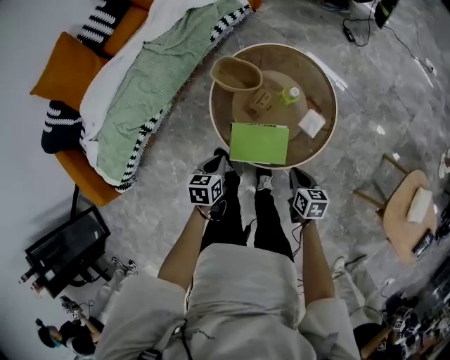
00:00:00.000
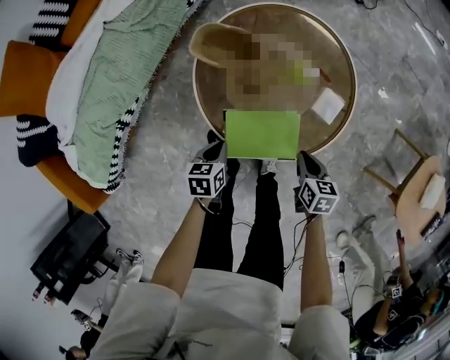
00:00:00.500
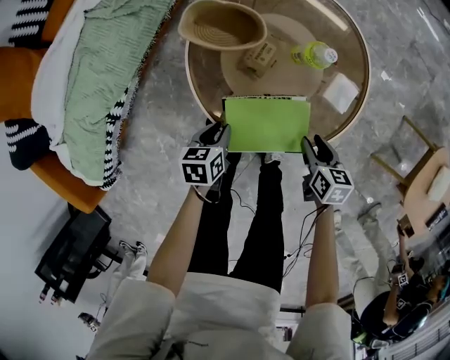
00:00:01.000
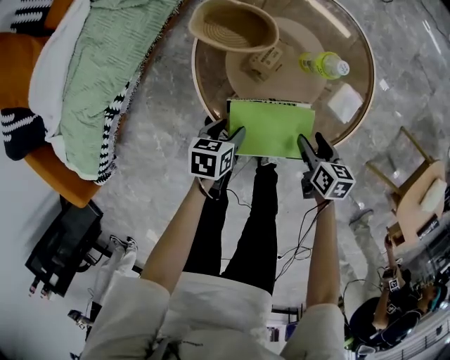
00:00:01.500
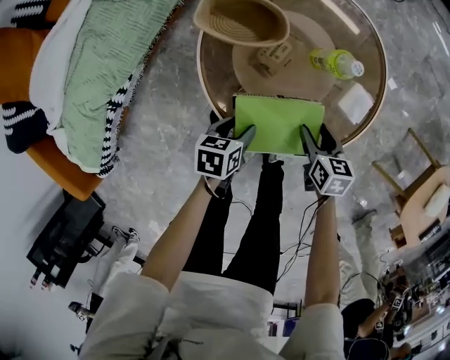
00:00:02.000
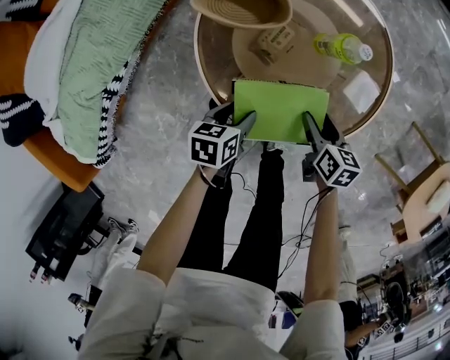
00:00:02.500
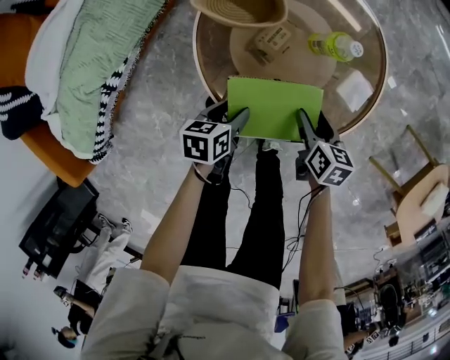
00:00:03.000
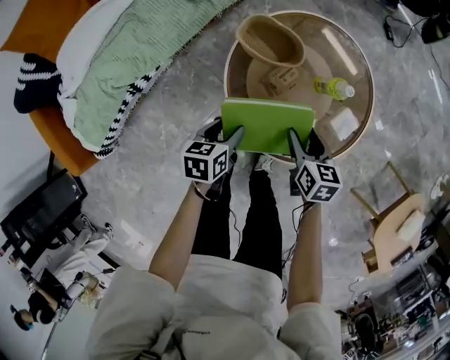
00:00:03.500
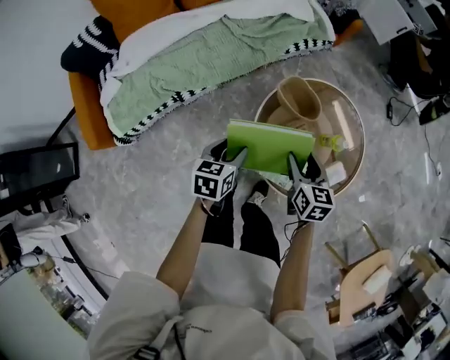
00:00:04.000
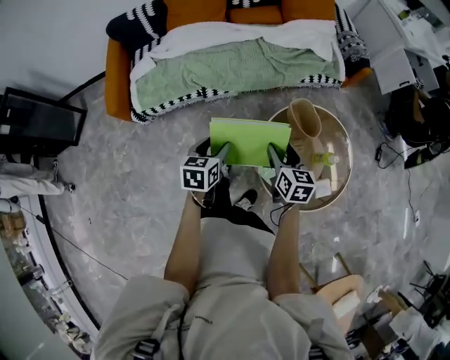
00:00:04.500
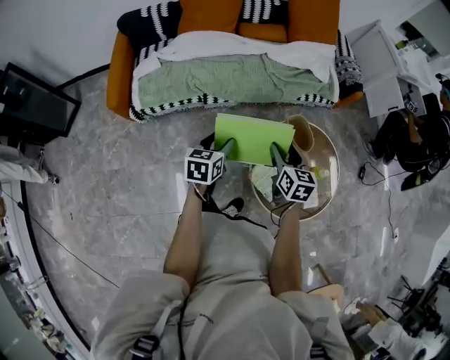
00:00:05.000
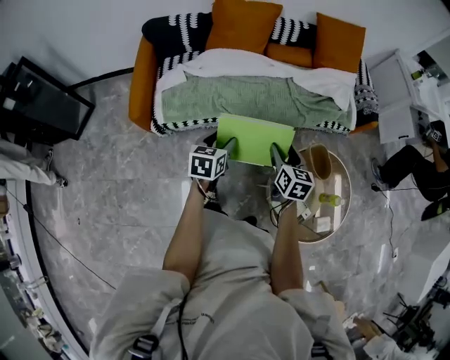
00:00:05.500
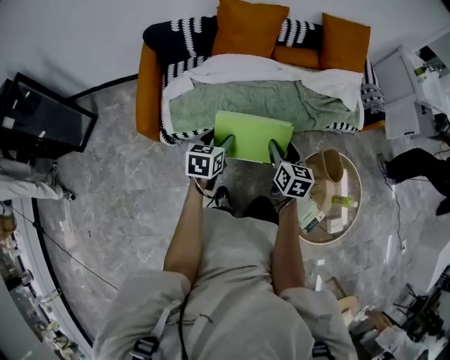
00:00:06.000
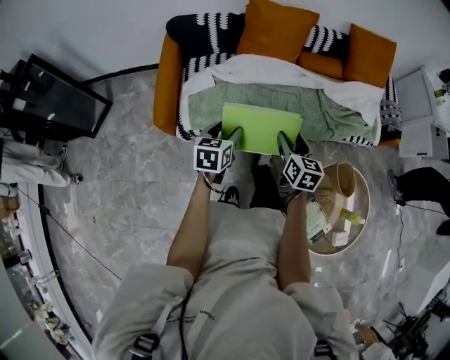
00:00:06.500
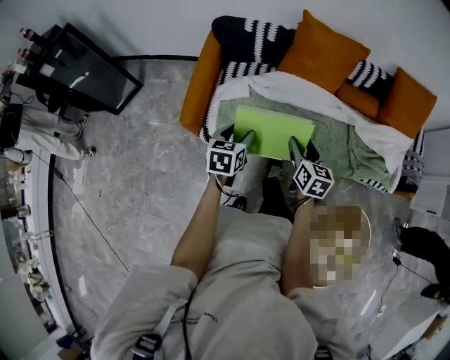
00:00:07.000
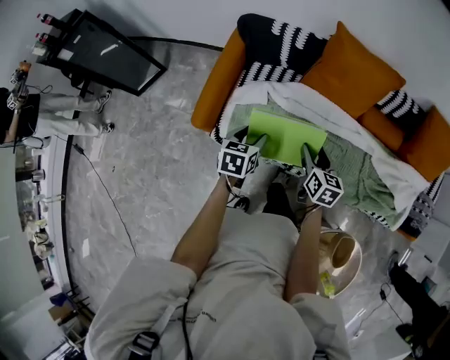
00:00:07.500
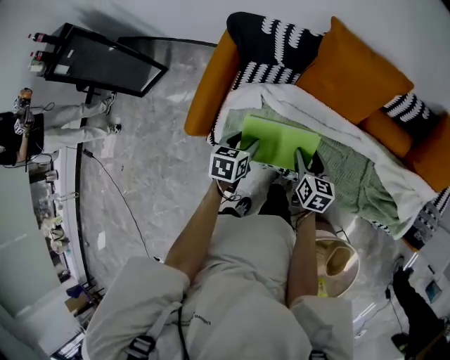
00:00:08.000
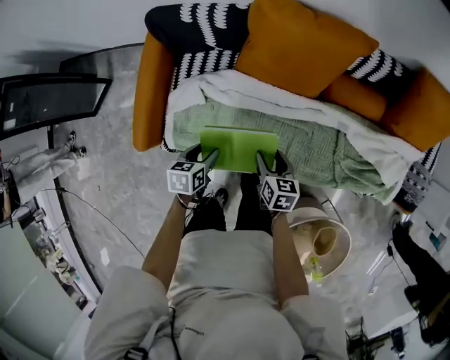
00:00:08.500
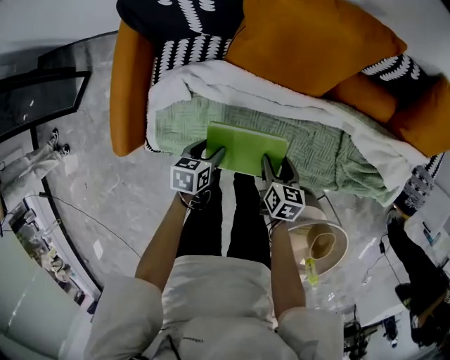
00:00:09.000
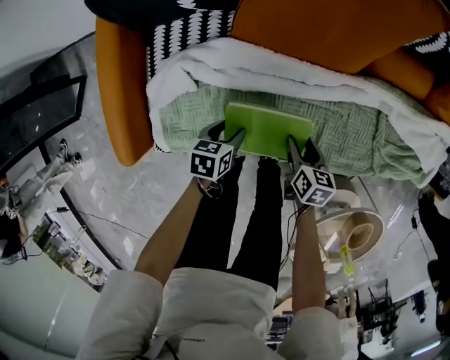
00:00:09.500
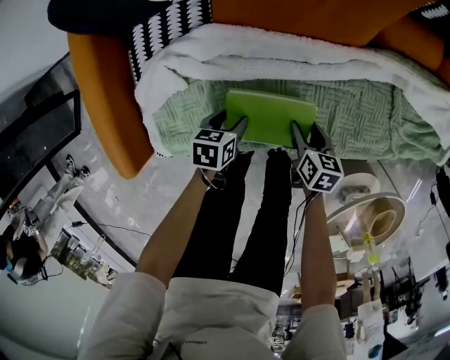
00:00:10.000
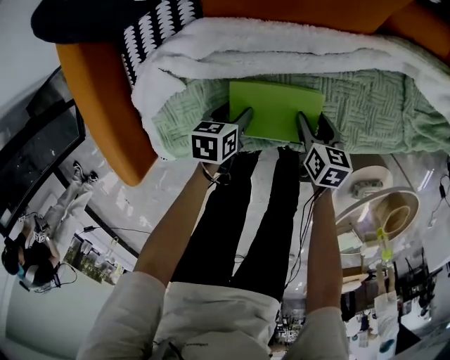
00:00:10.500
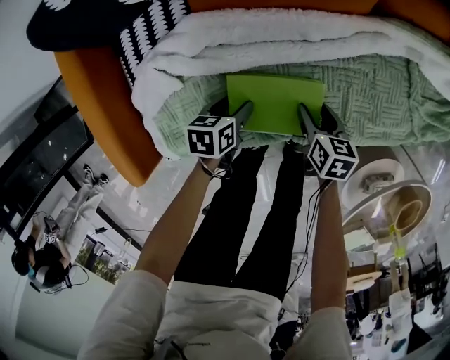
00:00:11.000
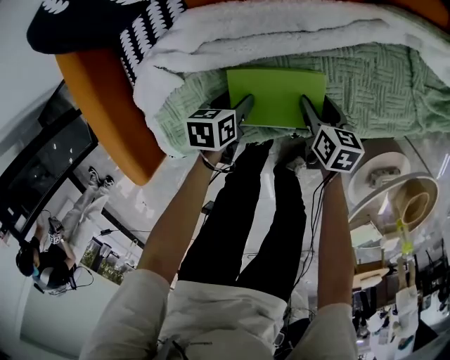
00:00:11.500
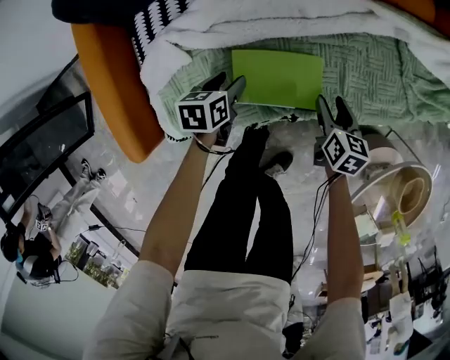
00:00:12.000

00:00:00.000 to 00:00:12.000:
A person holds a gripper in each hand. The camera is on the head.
00:00:00.000 to 00:00:02.000: The right gripper is displaced downward and forward by some 20 cm, and opens its fingers, while the left gripper heads downward, covering about 20 cm, changes its angle by about 20 degrees, and opens.
00:00:02.000 to 00:00:04.000: Both grippers travel together upward, approximately 25 cm. The right gripper swivels some 30 degrees. The left gripper changes its angle by some 30 degrees.
00:00:04.000 to 00:00:06.000: Both grippers move to the left, about 40 cm. The left gripper rotates about 30 degrees. The right gripper swivels roughly 20 degrees.
00:00:06.000 to 00:00:08.000: The left gripper changes place by approximately 30 cm, and swivels about 30 degrees. The right gripper changes place by roughly 40 cm, and changes its angle by approximately 30 degrees.
00:00:08.000 to 00:00:10.000: Both grippers travel together downward, roughly 35 cm. The right gripper rotates about 30 degrees; the left gripper changes its angle by approximately 30 degrees.
00:00:10.000 to 00:00:12.000: The right gripper shifts approximately 5 cm to the right.

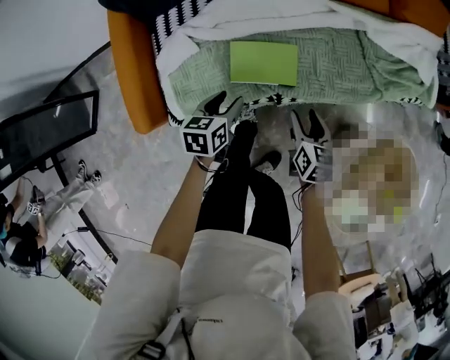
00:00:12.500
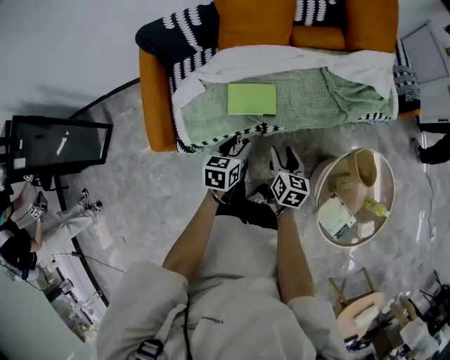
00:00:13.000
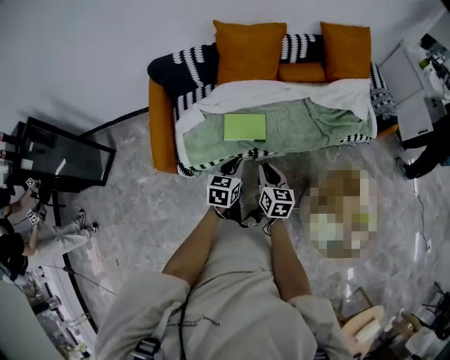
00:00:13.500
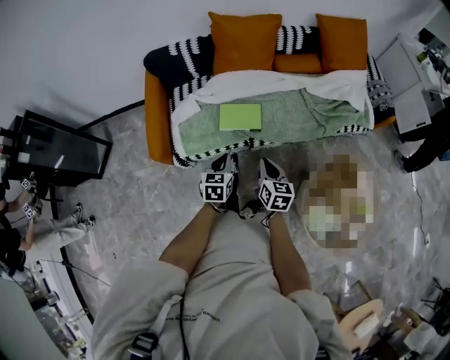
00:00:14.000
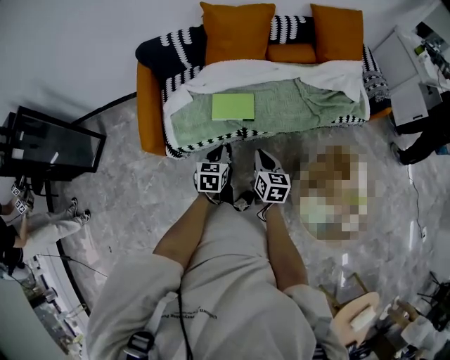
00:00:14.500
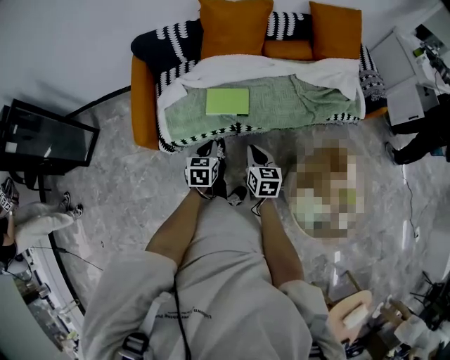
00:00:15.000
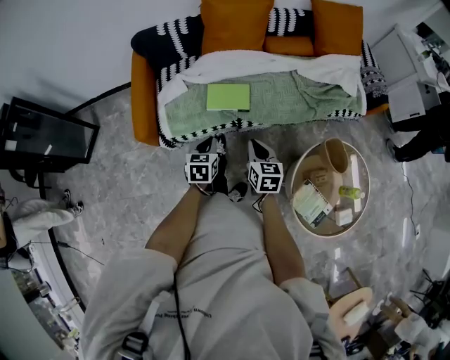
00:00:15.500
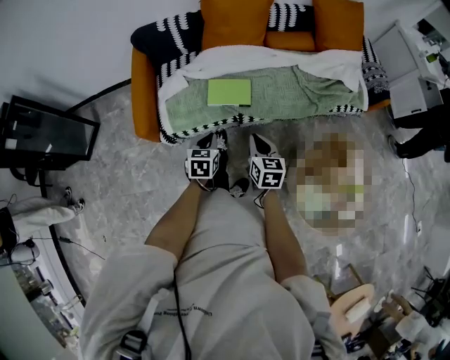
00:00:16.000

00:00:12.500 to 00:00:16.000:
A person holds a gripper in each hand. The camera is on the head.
00:00:12.500 to 00:00:14.500: The left gripper travels backward, upward and to the right by roughly 25 cm, and closes its fingers. Meanwhile the right gripper shifts approximately 25 cm upward and backward, and closes its fingers.
00:00:14.500 to 00:00:16.000: The grippers move only a little.

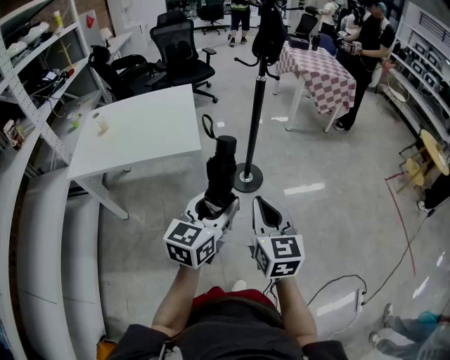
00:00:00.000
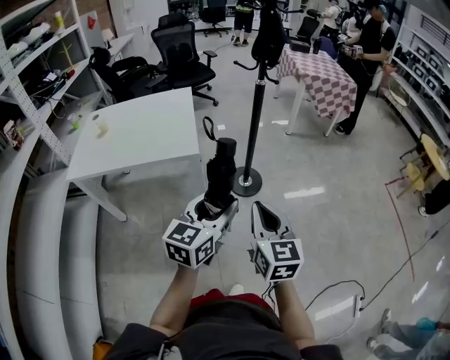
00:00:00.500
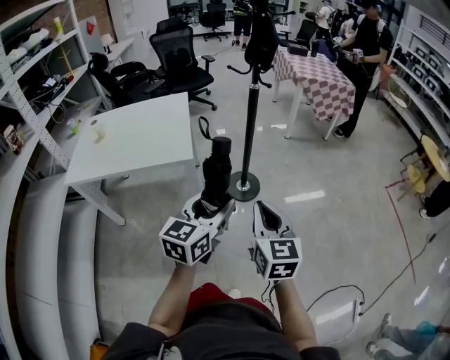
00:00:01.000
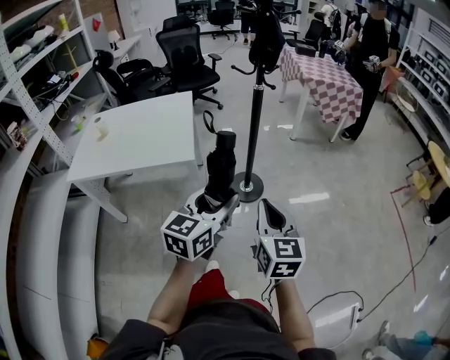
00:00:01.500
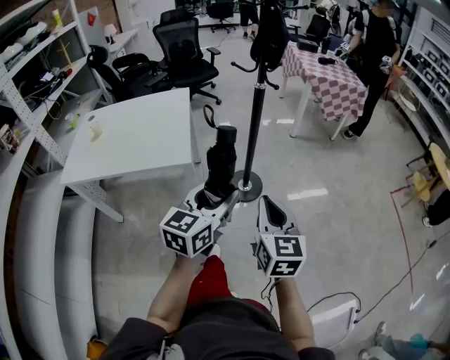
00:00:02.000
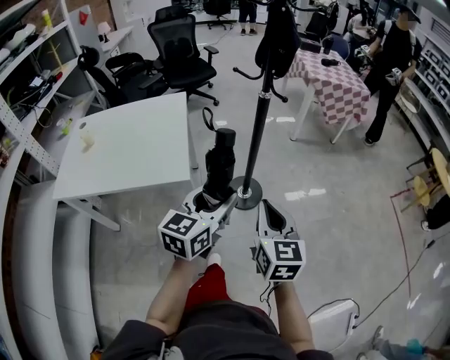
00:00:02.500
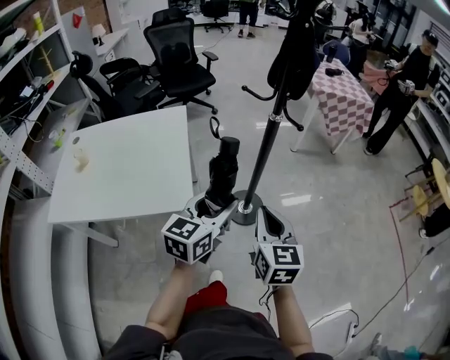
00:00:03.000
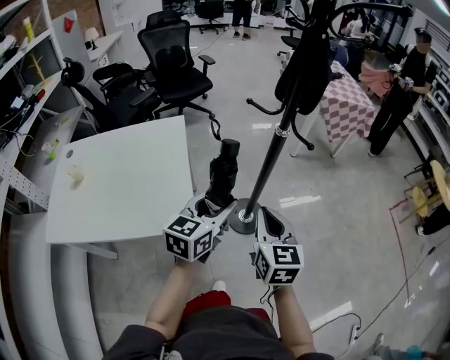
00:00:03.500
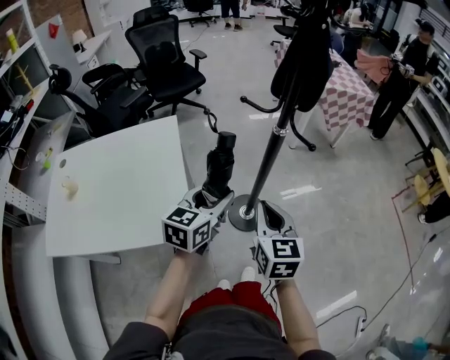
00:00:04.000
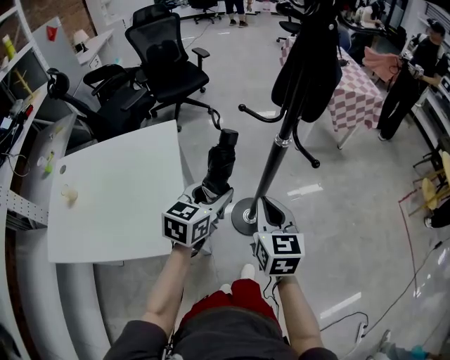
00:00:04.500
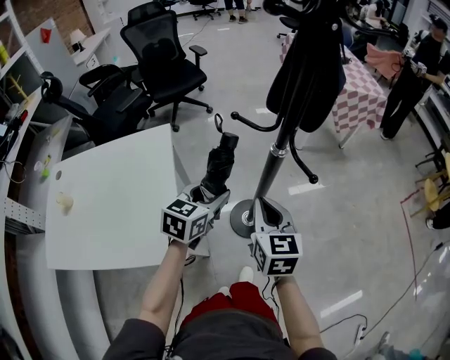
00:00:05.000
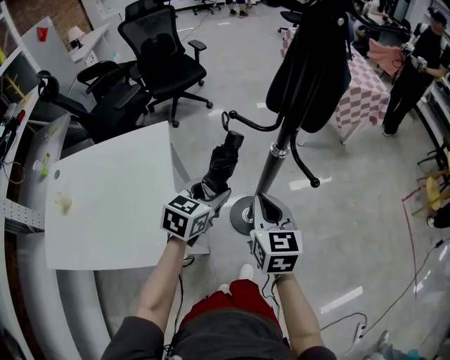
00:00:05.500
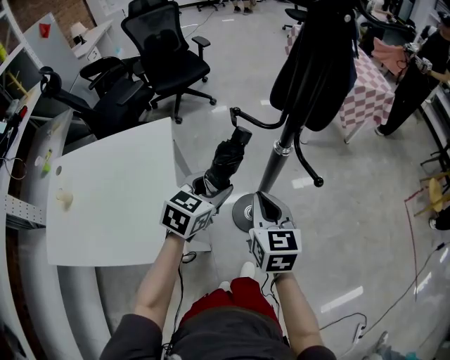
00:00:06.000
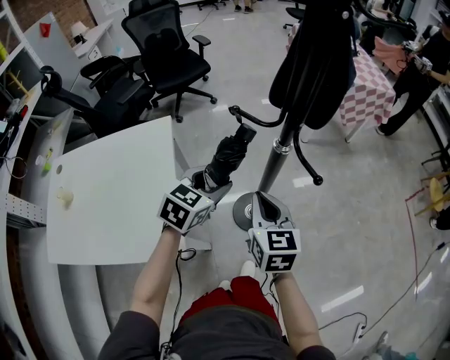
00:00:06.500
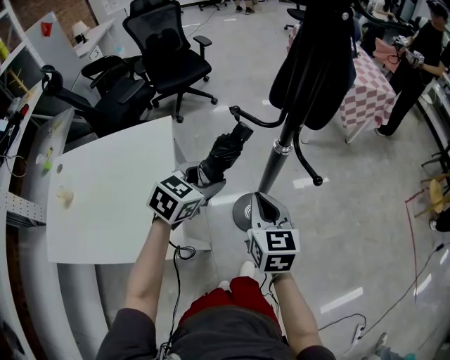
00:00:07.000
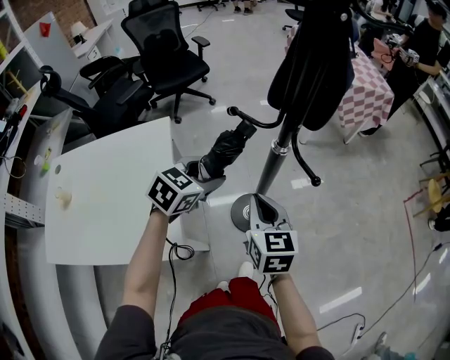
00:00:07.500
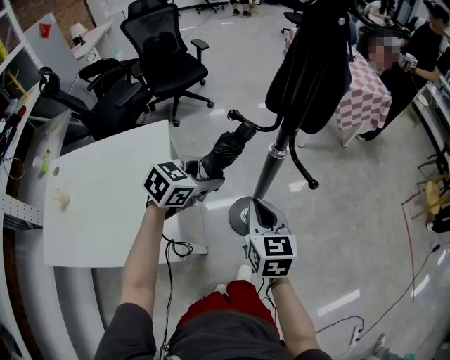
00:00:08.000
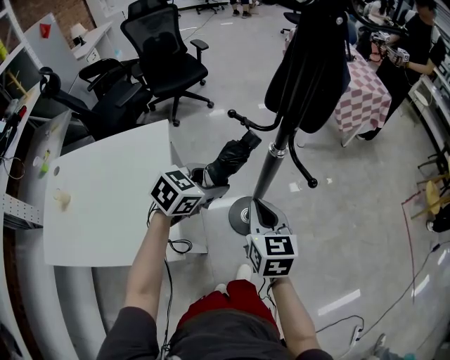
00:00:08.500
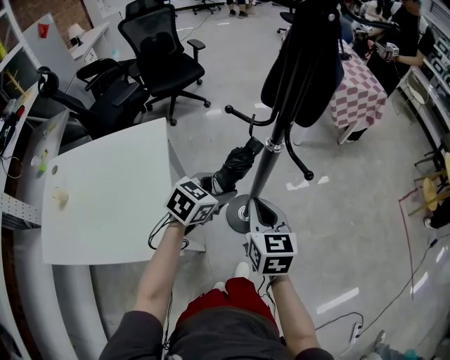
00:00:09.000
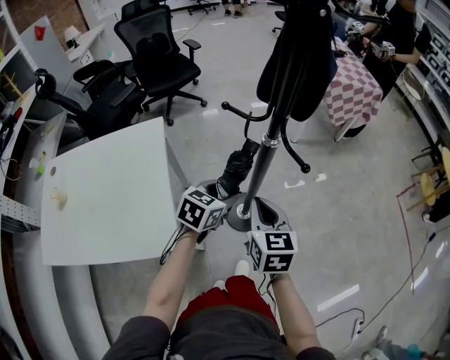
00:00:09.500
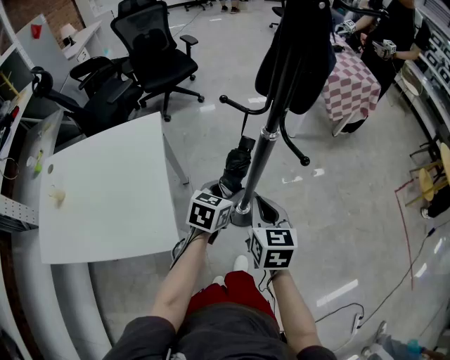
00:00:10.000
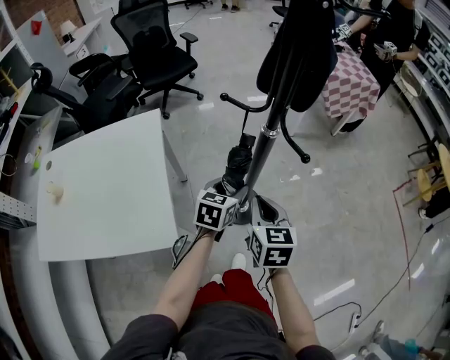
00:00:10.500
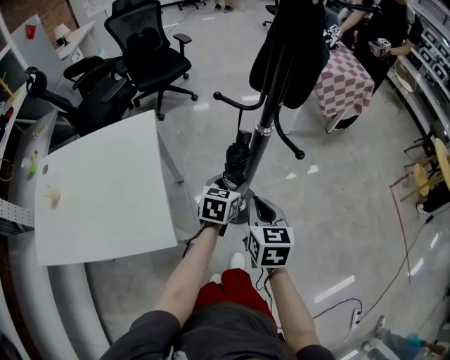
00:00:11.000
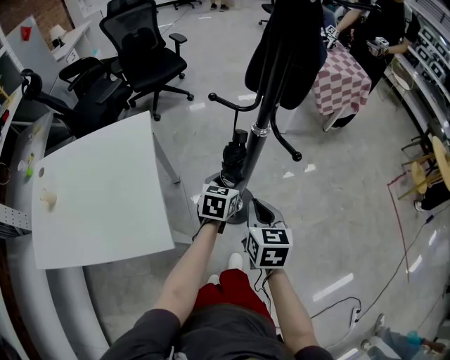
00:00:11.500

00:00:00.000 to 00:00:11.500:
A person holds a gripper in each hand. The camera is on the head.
00:00:00.000 to 00:00:02.000: The left gripper travels forward by approximately 15 cm, while the right gripper moves forward and to the right, some 15 cm.
00:00:02.000 to 00:00:04.000: The grippers both shift forward and to the left by approximately 35 cm.
00:00:04.000 to 00:00:06.000: The grippers both shift forward by approximately 15 cm.
00:00:06.000 to 00:00:07.500: The grippers make only small movements.
00:00:07.500 to 00:00:09.500: The left gripper goes roughly 10 cm to the right and downward.
00:00:09.500 to 00:00:11.500: The right gripper changes place by about 5 cm; the left gripper heads downward, covering approximately 5 cm.
